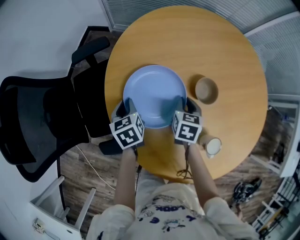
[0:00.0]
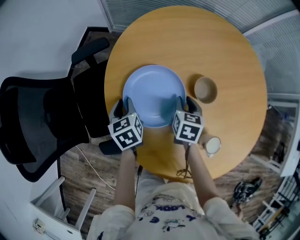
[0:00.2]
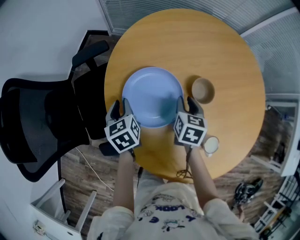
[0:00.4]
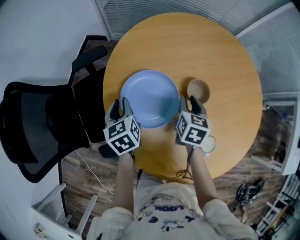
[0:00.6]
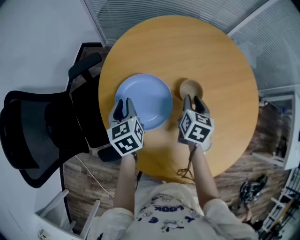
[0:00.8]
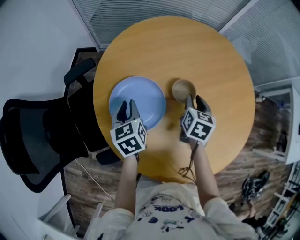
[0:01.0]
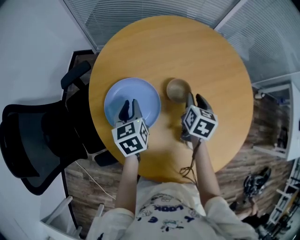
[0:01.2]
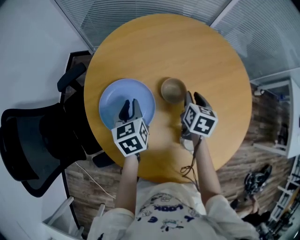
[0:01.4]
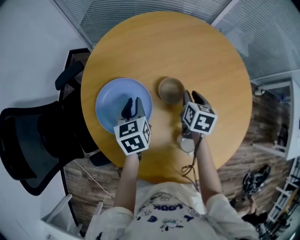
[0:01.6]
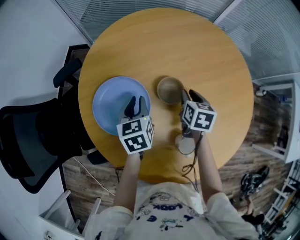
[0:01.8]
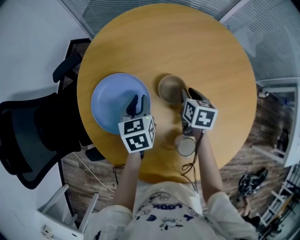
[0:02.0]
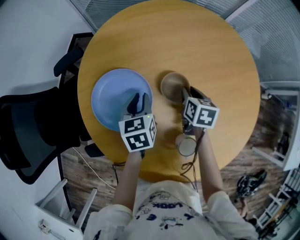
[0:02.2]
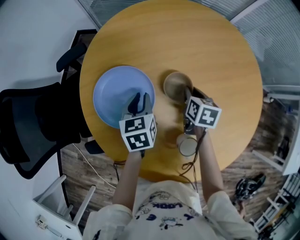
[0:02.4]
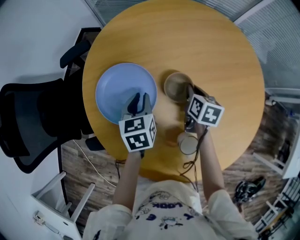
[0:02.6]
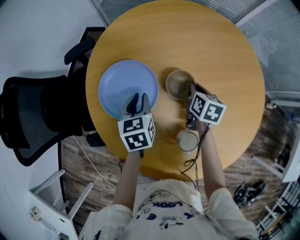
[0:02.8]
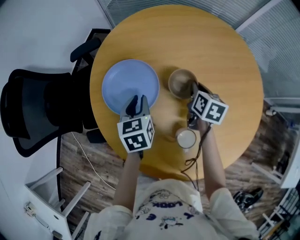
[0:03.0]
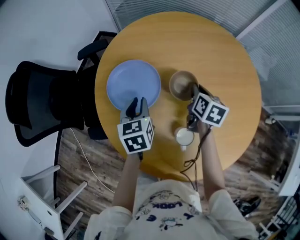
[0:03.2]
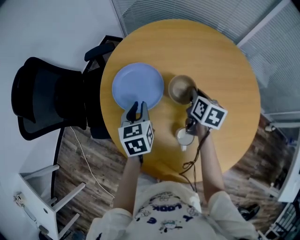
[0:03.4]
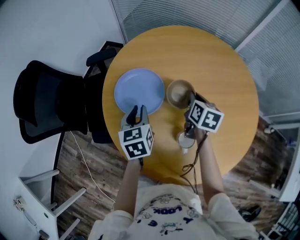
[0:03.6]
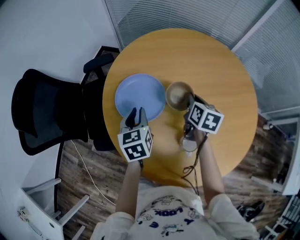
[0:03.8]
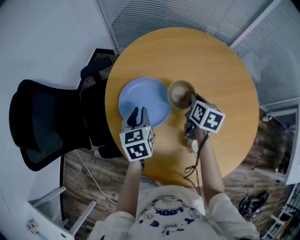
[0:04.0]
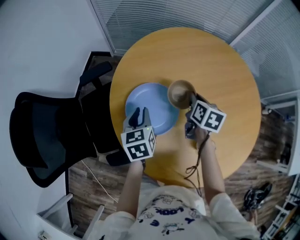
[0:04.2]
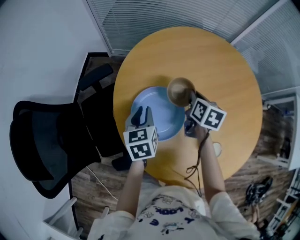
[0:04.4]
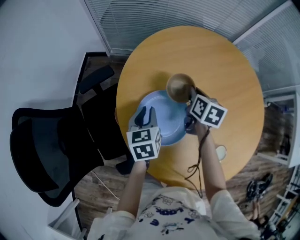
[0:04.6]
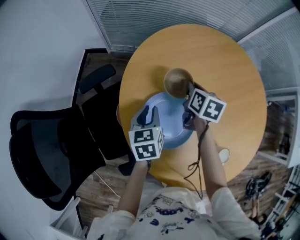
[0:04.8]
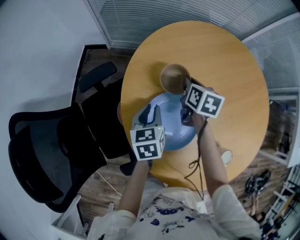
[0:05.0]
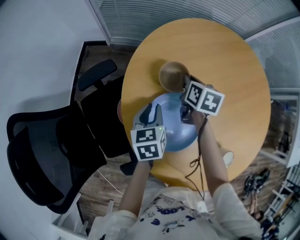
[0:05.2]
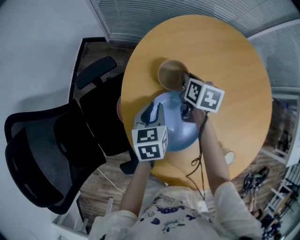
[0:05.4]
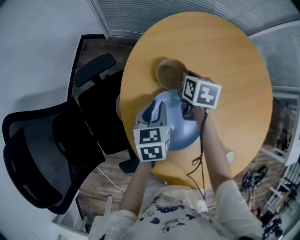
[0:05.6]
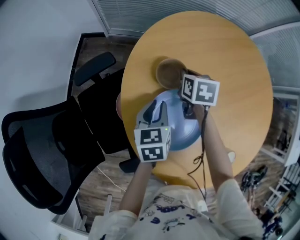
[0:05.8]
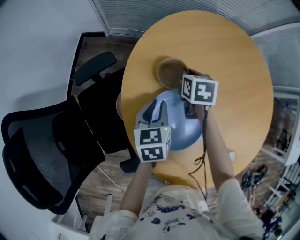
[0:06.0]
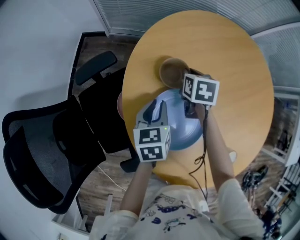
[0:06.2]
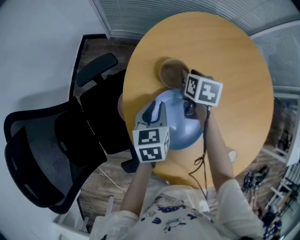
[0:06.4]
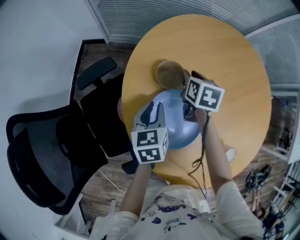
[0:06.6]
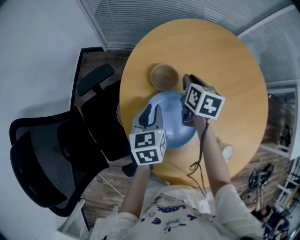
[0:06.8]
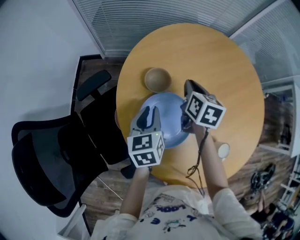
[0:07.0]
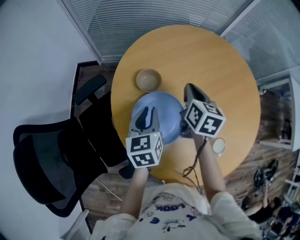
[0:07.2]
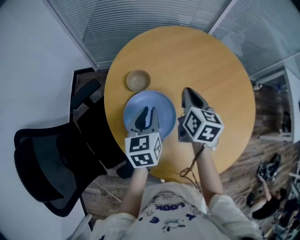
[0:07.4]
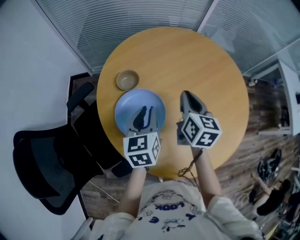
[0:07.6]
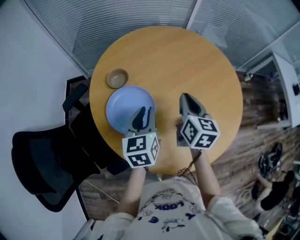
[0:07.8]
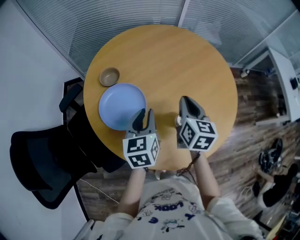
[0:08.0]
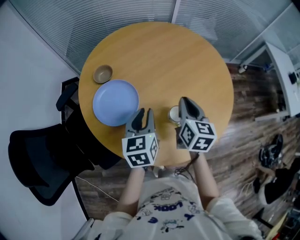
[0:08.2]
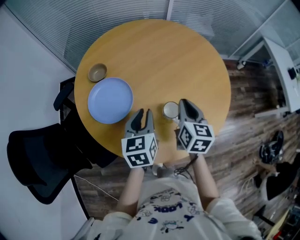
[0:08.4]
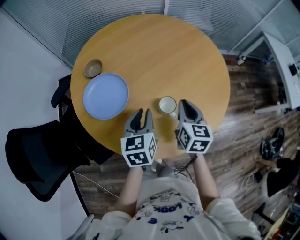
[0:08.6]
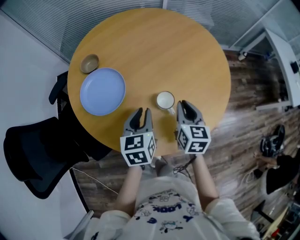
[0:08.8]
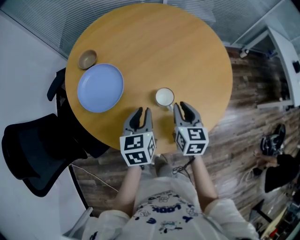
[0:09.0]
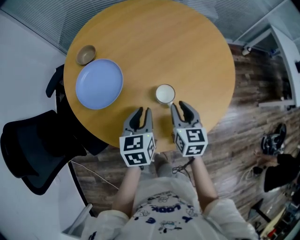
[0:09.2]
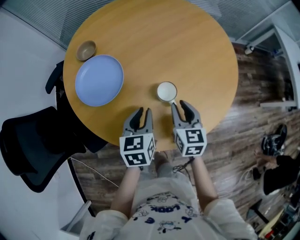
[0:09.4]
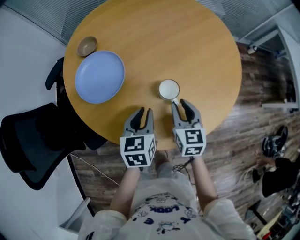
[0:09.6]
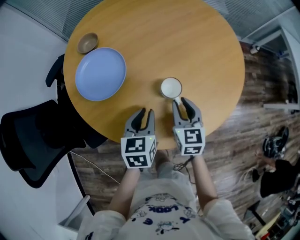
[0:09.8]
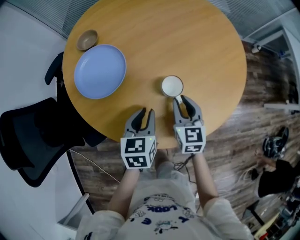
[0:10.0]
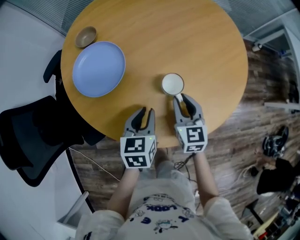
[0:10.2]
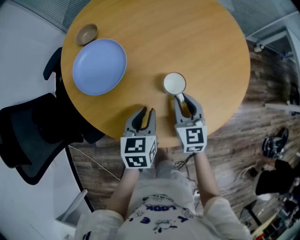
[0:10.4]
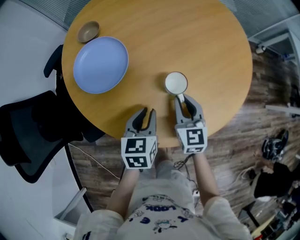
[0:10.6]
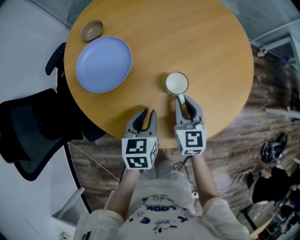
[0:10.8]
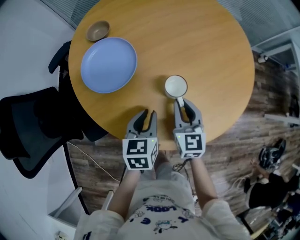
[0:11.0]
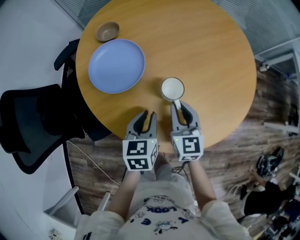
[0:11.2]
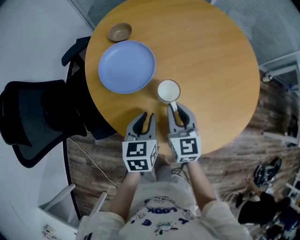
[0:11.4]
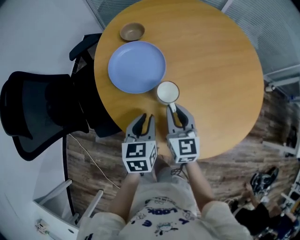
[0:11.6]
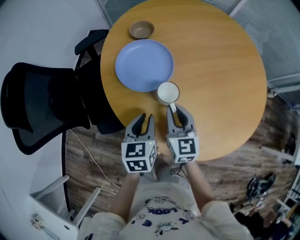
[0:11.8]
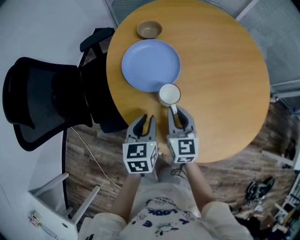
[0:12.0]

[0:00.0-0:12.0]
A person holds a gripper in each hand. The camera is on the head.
0:00.0 to 0:01.6: The right gripper shifts about 15 cm to the right, while the left gripper moves to the right and upward, about 20 cm.
0:01.6 to 0:03.0: The left gripper travels backward by roughly 5 cm; the right gripper closes its fingers.
0:03.0 to 0:04.4: Both grippers travel together to the left and forward, approximately 15 cm.
0:04.4 to 0:06.0: The left gripper is displaced forward by roughly 5 cm; the right gripper is displaced to the left, forward and downward by about 15 cm, and turns by about 20 degrees.
0:06.0 to 0:07.6: The left gripper moves upward, to the right and backward, approximately 20 cm; the right gripper heads upward, to the right and backward, covering approximately 30 cm, points its fingers about 30 degrees further upward, and opens, then closes again.
0:07.6 to 0:09.0: The right gripper heads to the right, backward and downward, covering roughly 30 cm. The left gripper is displaced to the right and backward by some 20 cm.
0:09.0 to 0:10.4: The right gripper shifts by some 5 cm. Meanwhile the left gripper heads downward, covering approximately 5 cm.
0:10.4 to 0:12.0: Both grippers move to the left, about 15 cm. The left gripper changes its angle by some 20 degrees.

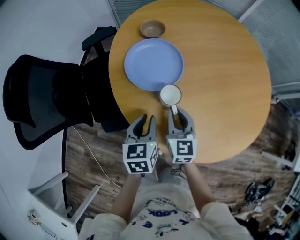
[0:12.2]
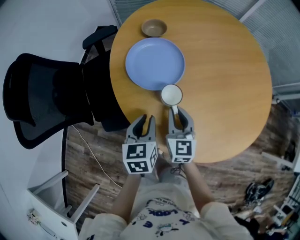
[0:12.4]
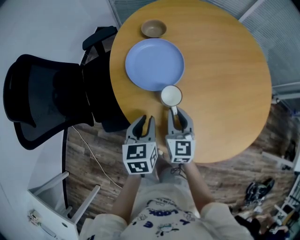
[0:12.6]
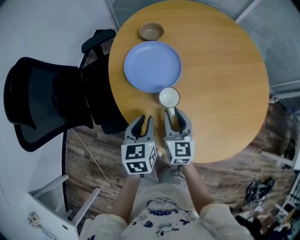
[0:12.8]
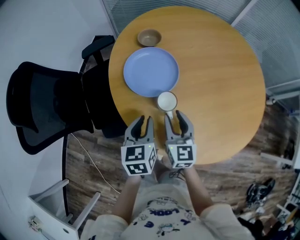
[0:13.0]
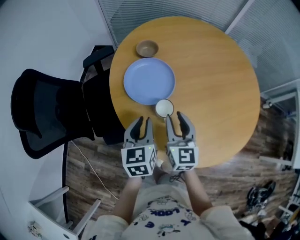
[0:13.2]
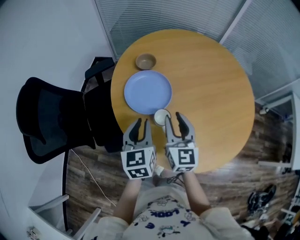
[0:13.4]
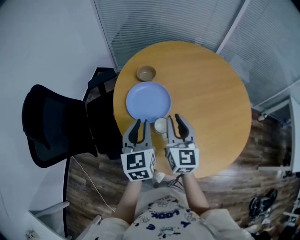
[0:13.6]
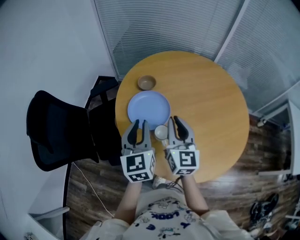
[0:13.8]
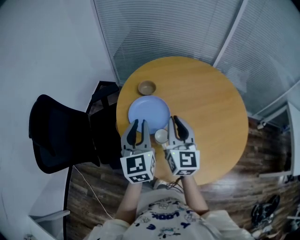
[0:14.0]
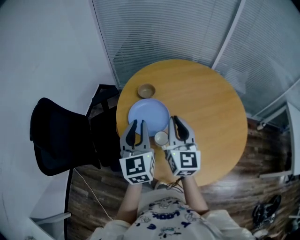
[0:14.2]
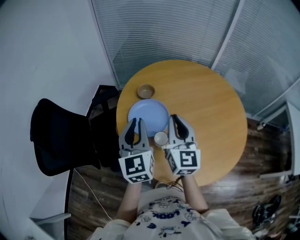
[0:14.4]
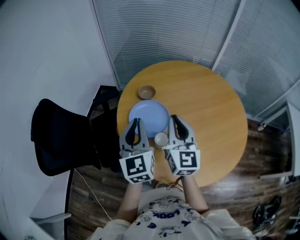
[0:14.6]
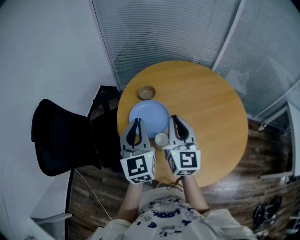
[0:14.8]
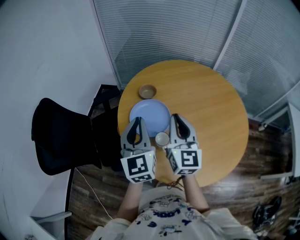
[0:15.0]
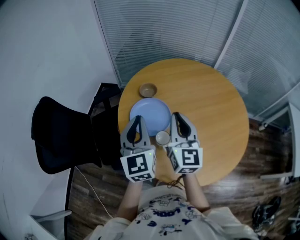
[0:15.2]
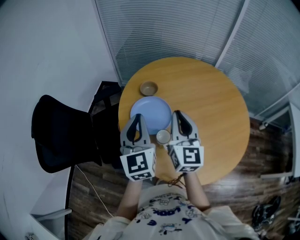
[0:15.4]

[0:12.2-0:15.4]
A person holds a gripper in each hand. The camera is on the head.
0:12.2 to 0:13.8: The right gripper shifts approximately 20 cm upward, while the left gripper moves upward and forward, roughly 20 cm, and turns by about 30 degrees.
0:13.8 to 0:15.4: The grippers both shift upward by some 5 cm.

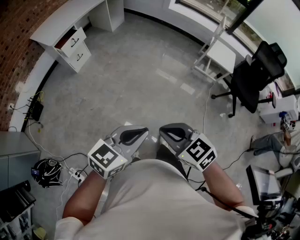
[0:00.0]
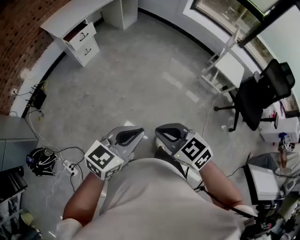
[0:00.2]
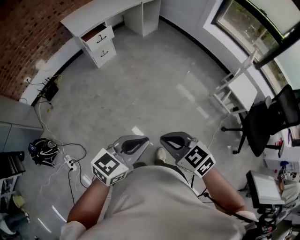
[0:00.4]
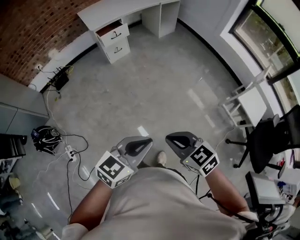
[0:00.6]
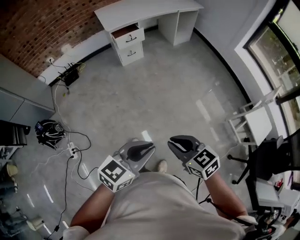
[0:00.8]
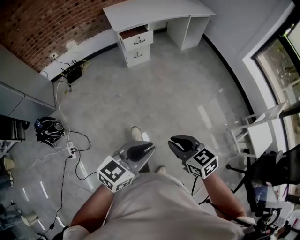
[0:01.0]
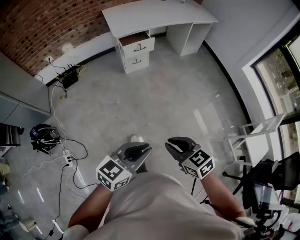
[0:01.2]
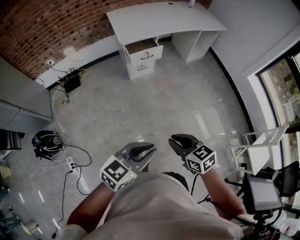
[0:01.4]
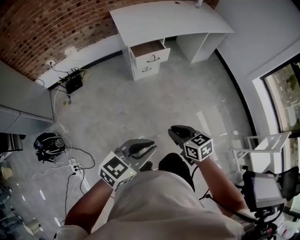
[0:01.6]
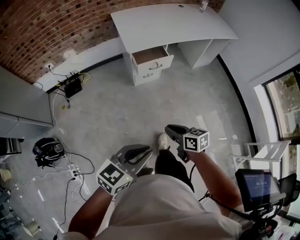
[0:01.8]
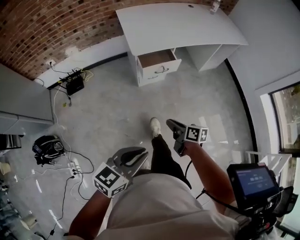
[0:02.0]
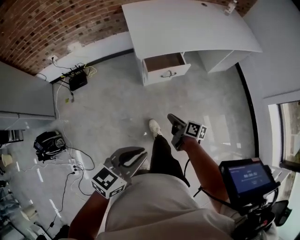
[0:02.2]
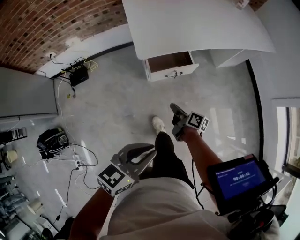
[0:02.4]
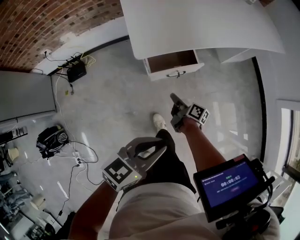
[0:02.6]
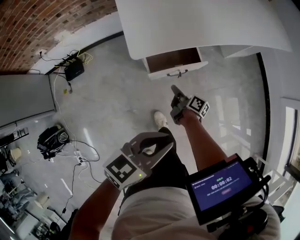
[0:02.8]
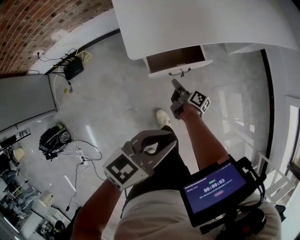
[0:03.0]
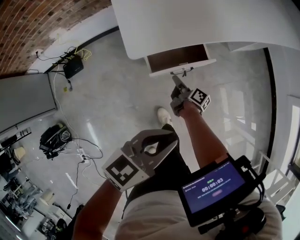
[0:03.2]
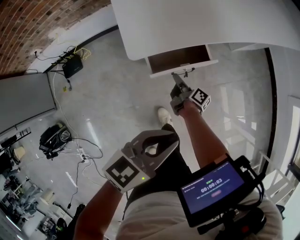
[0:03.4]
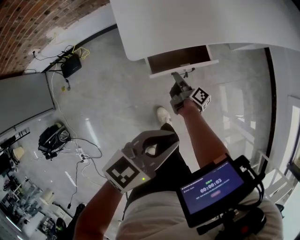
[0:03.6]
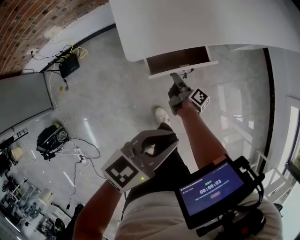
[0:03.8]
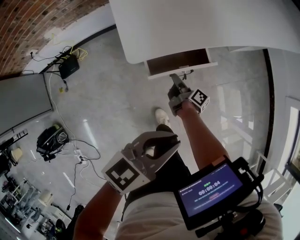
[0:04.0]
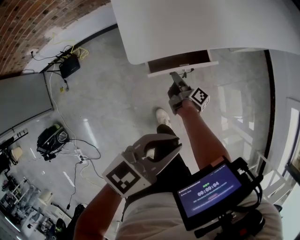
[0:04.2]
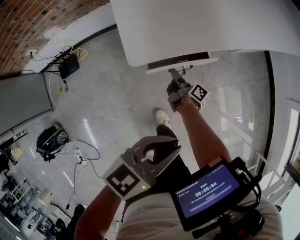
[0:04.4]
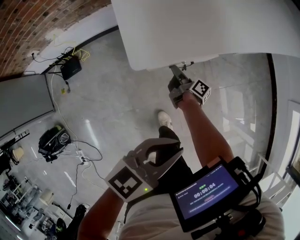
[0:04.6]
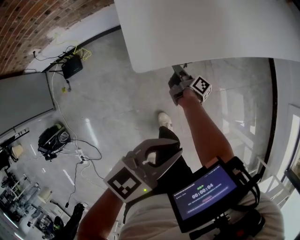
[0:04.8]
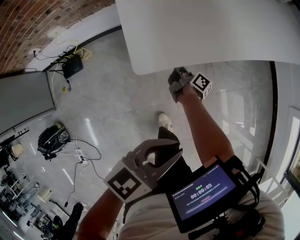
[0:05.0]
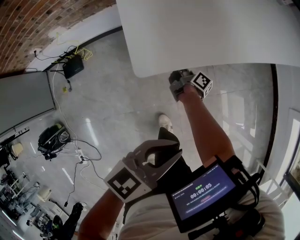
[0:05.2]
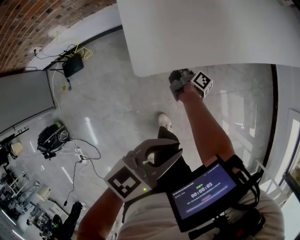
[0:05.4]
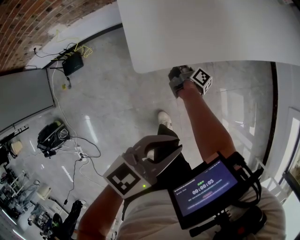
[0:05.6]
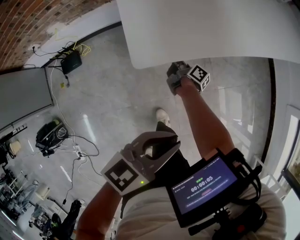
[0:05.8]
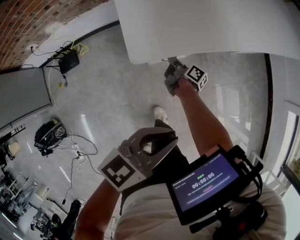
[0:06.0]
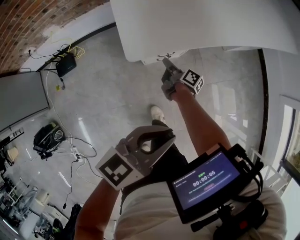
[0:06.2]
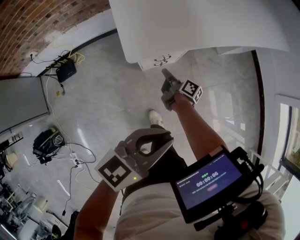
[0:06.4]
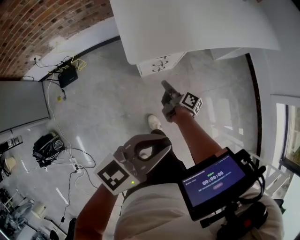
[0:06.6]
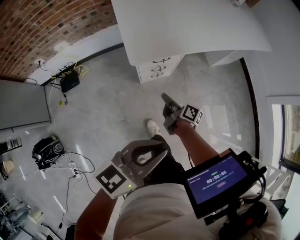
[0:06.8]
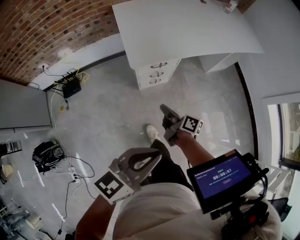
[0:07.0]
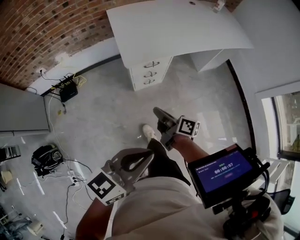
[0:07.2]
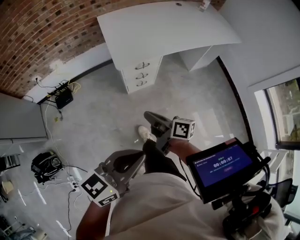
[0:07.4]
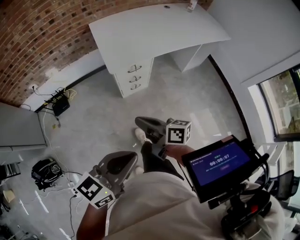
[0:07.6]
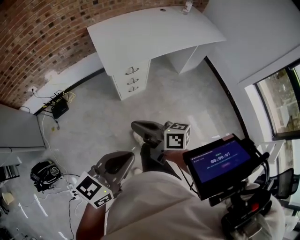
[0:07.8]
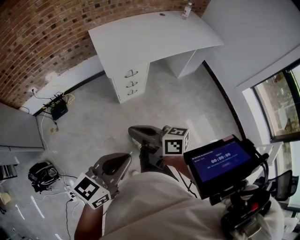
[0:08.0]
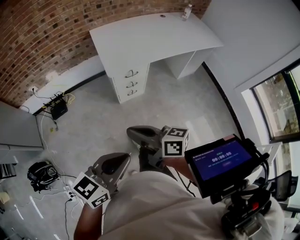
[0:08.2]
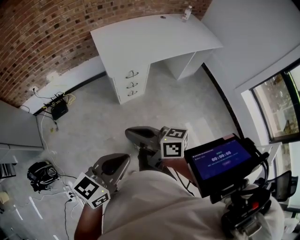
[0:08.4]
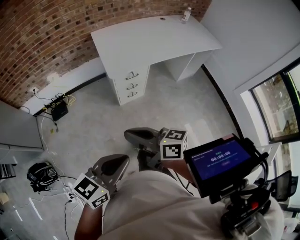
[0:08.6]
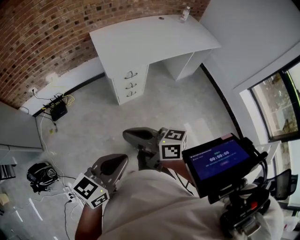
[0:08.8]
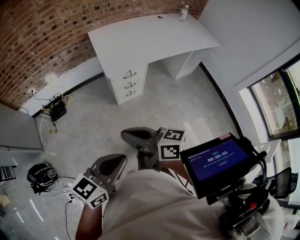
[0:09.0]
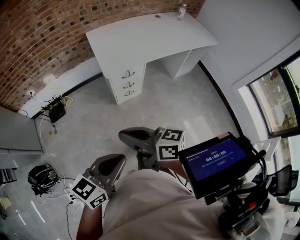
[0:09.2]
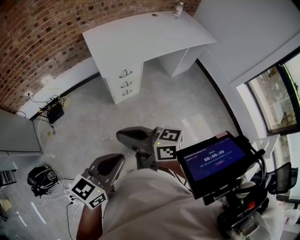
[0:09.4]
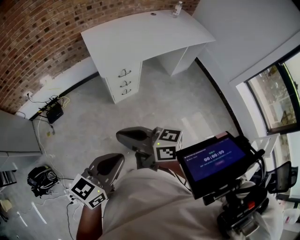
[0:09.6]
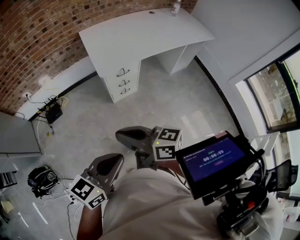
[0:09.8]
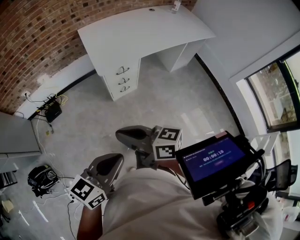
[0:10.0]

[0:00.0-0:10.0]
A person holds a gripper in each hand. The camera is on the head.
0:00.0 to 0:01.4: The left gripper moves about 35 cm, and rotates about 30 degrees. The right gripper ends up some 40 cm from where it was, and swivels roughly 20 degrees.
0:01.4 to 0:02.8: The two grippers travel together, forward, some 60 cm. The right gripper moves downward, some 35 cm, and rotates around the line of its fingers by some 70 degrees, clockwise from behind.
0:02.8 to 0:04.2: The left gripper heads forward, covering approximately 5 cm. The right gripper moves forward and downward, about 10 cm.
0:04.2 to 0:05.8: The right gripper heads forward and to the left, covering about 10 cm.
0:05.8 to 0:07.2: The two grippers go some 40 cm backward and upward. The right gripper turns by some 30 degrees.
0:07.2 to 0:08.6: The left gripper shifts approximately 10 cm backward. The right gripper shifts some 25 cm upward and backward, and turns by roughly 30 degrees.
0:08.6 to 0:10.0: The grippers make only small movements.
